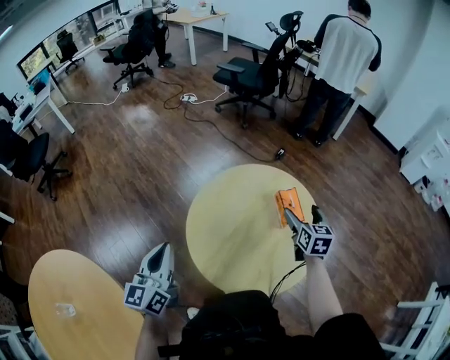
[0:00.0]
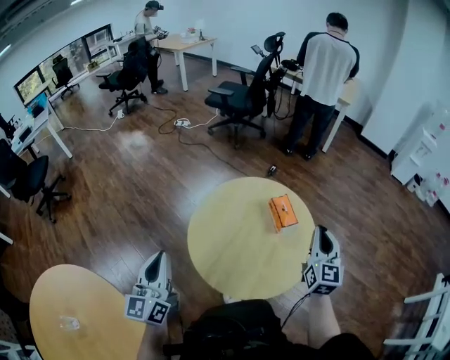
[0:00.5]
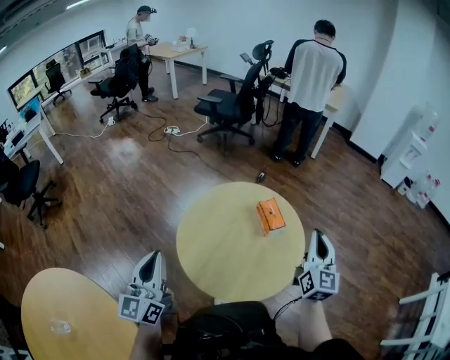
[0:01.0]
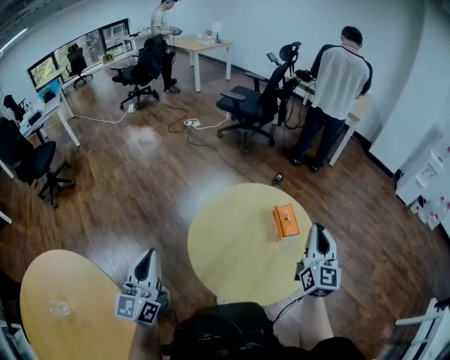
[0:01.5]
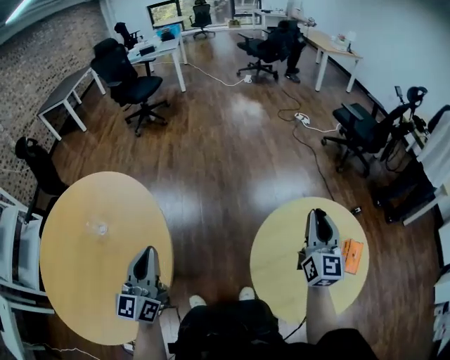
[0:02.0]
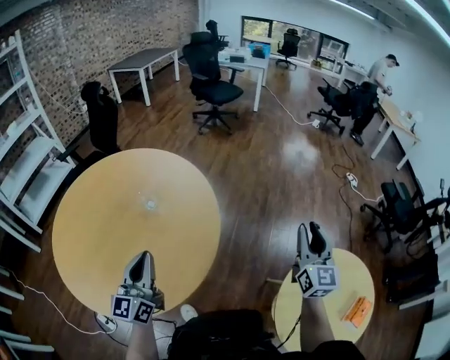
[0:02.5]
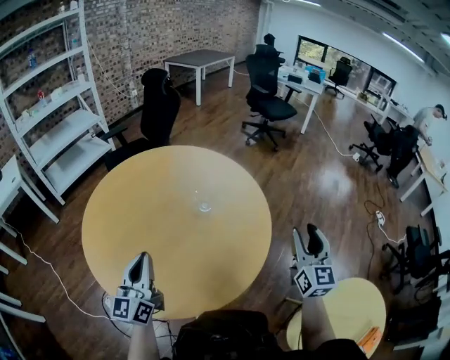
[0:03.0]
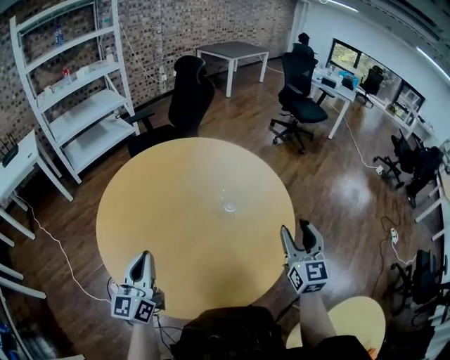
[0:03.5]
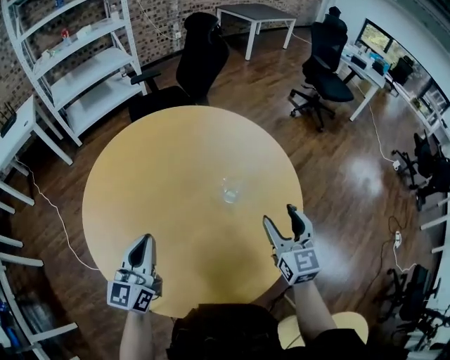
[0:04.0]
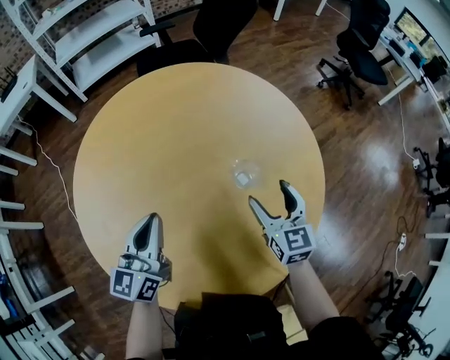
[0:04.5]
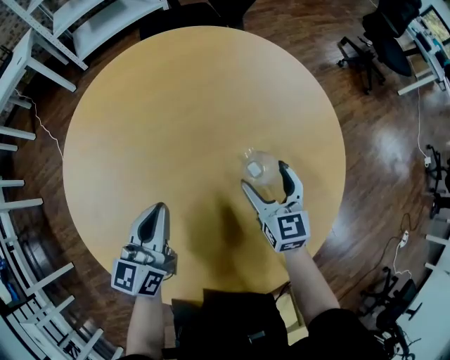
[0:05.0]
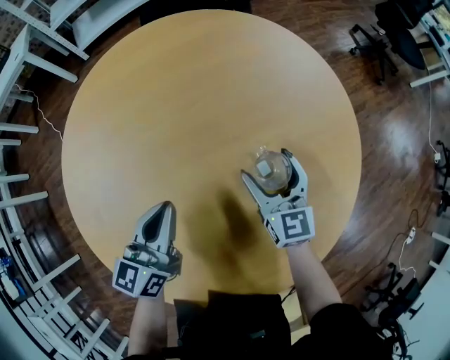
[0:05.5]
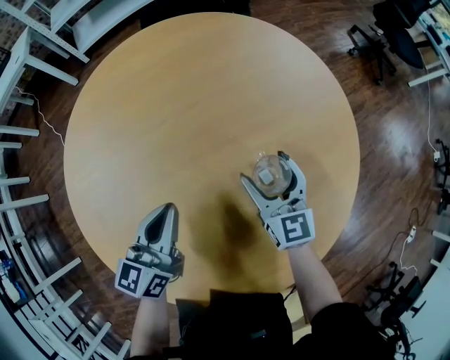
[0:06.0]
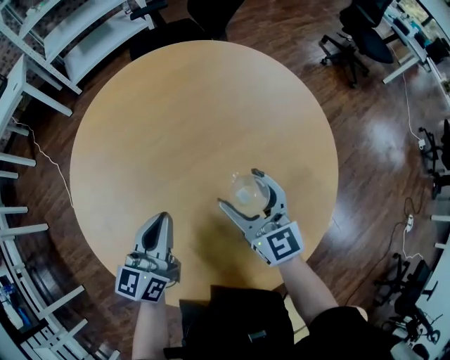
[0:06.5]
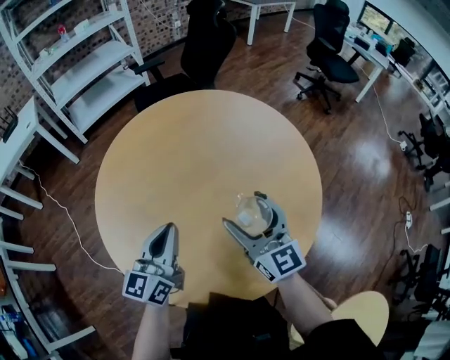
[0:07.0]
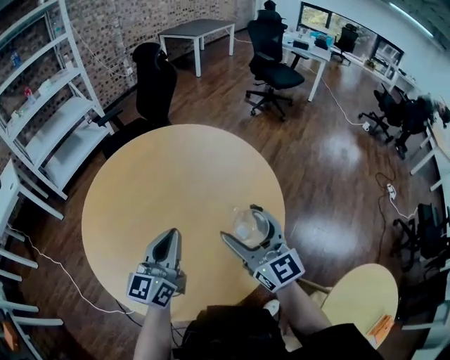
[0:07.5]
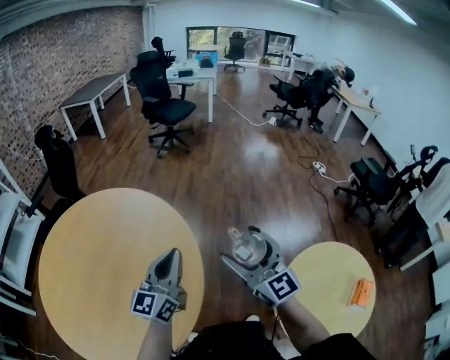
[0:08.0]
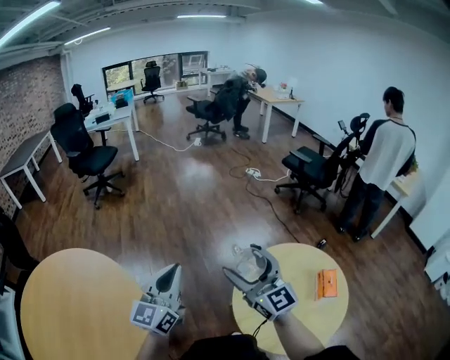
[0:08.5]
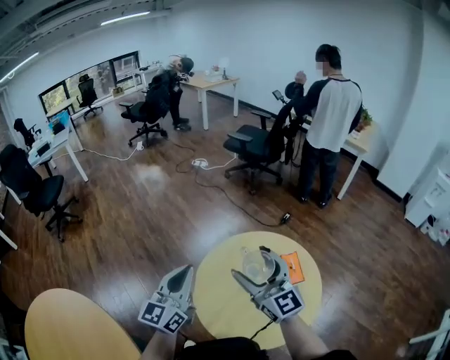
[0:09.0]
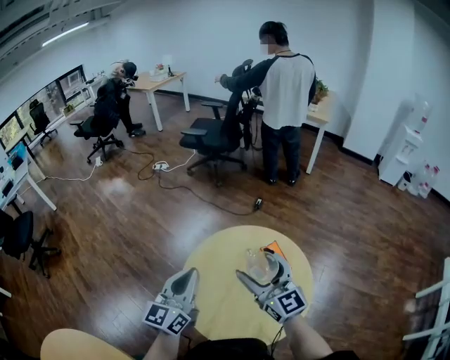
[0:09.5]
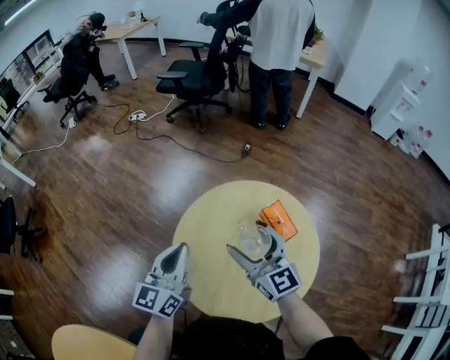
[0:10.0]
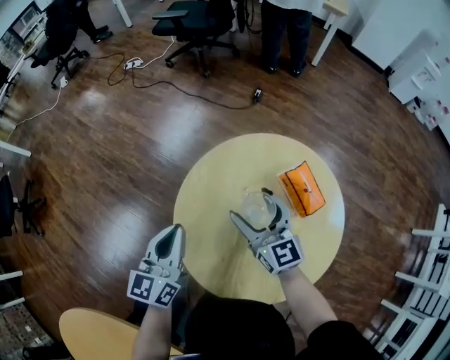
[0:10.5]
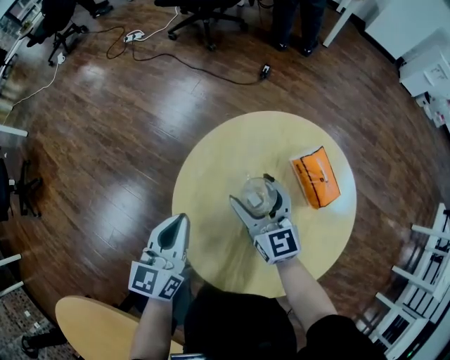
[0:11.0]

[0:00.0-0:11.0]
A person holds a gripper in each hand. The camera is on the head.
0:00.0 to 0:02.0: The left gripper changes place by some 30 cm, and rotates some 40 degrees. The right gripper shifts by some 35 cm, angles its fingers upward, by about 30 degrees, and closes its fingers.
0:02.0 to 0:03.5: The right gripper shifts by roughly 60 cm, and changes its angle by about 60 degrees; the left gripper changes place by approximately 50 cm, and swivels approximately 50 degrees.
0:03.5 to 0:05.5: The right gripper shifts approximately 35 cm forward, downward and to the left, swivels approximately 30 degrees, and opens up. Meanwhile the left gripper moves downward, forward and to the right, about 25 cm, and rotates about 20 degrees.
0:05.5 to 0:07.5: The right gripper travels upward and backward by approximately 35 cm, and turns by some 30 degrees, while the left gripper is displaced upward and backward by roughly 20 cm, and turns by some 30 degrees.
0:07.5 to 0:09.0: The two grippers travel together, roughly 70 cm. The left gripper changes its angle by about 80 degrees. The right gripper rotates roughly 80 degrees.
0:09.0 to 0:11.0: The right gripper travels downward by approximately 25 cm, and swivels some 30 degrees; the left gripper goes some 25 cm downward and forward, and swivels approximately 30 degrees.

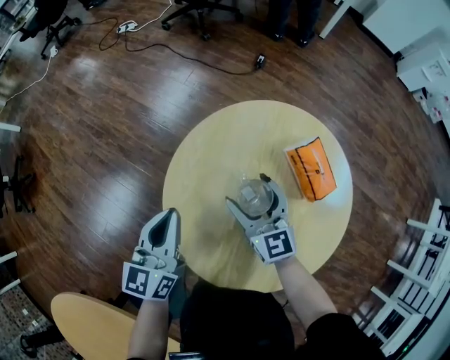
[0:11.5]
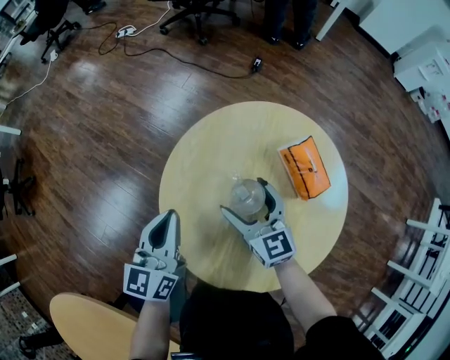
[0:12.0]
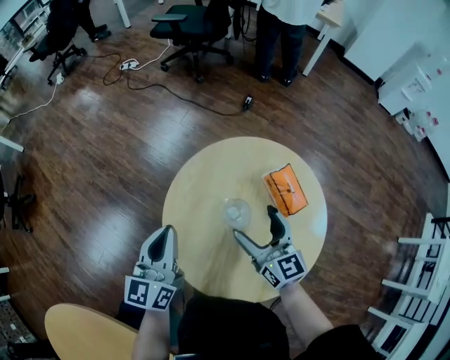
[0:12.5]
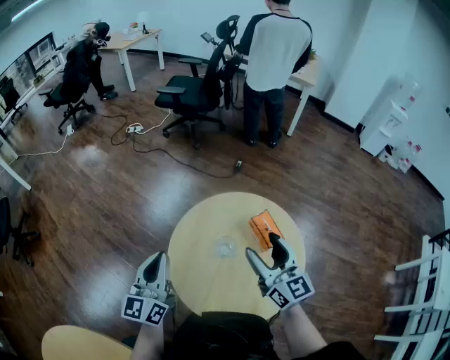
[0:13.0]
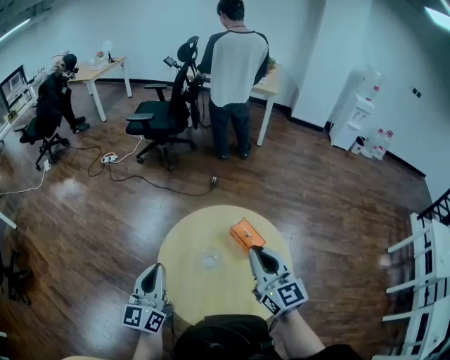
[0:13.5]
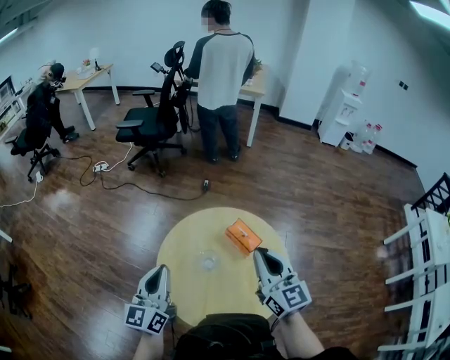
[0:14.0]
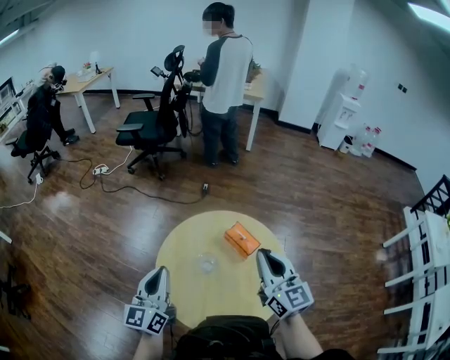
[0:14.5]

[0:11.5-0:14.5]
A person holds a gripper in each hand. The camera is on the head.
0:11.5 to 0:13.0: The two grippers go about 20 cm upward.
0:13.0 to 0:14.5: The right gripper shifts some 5 cm to the right, and closes up.

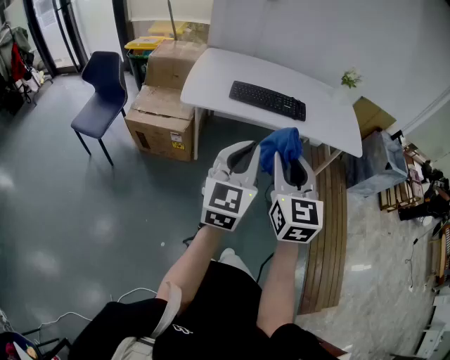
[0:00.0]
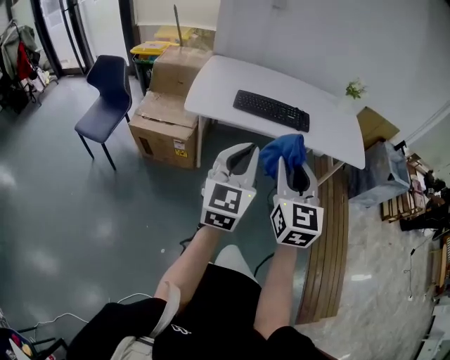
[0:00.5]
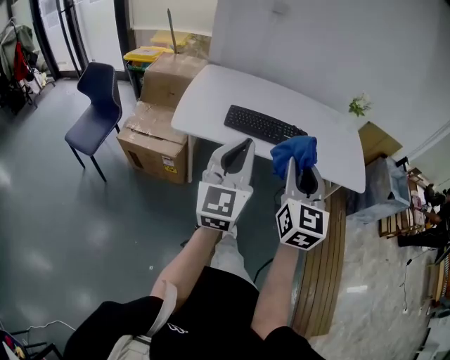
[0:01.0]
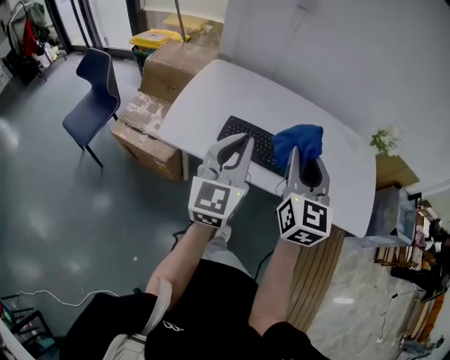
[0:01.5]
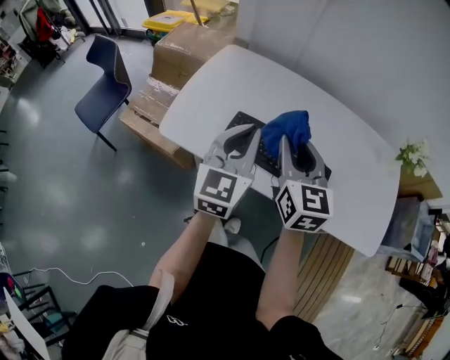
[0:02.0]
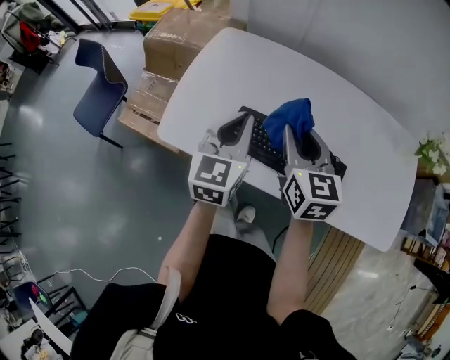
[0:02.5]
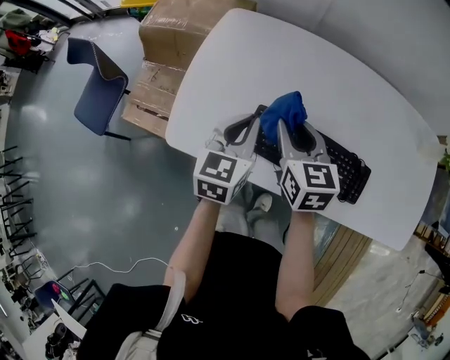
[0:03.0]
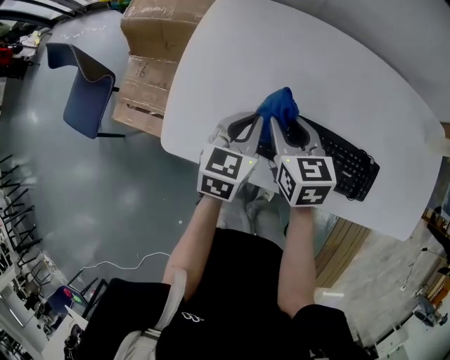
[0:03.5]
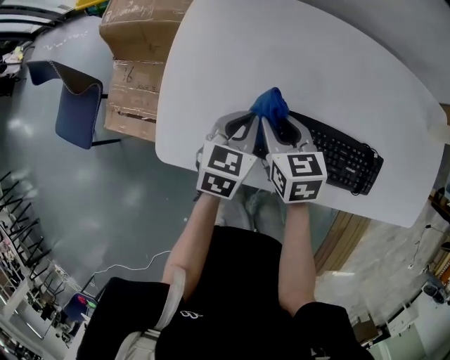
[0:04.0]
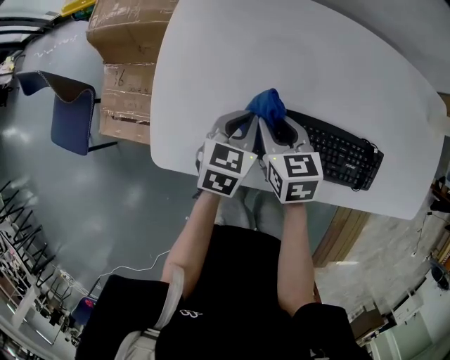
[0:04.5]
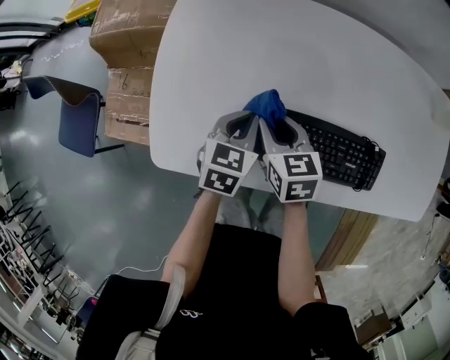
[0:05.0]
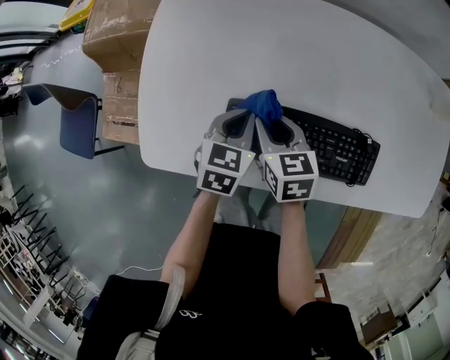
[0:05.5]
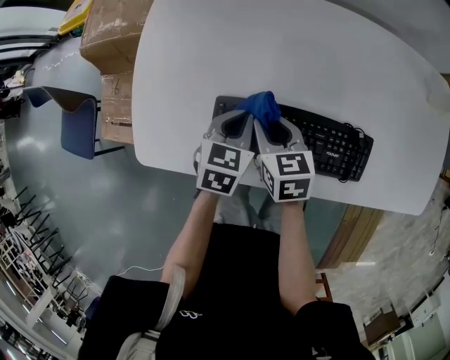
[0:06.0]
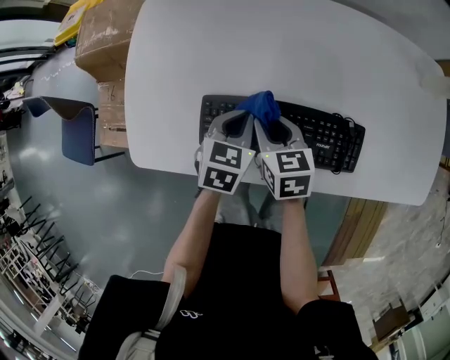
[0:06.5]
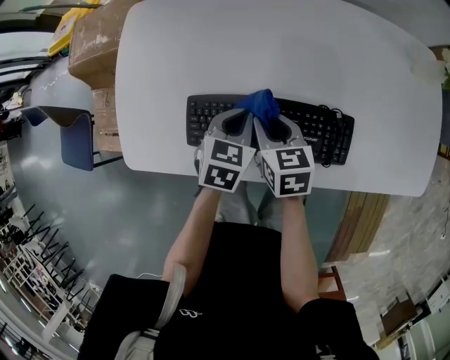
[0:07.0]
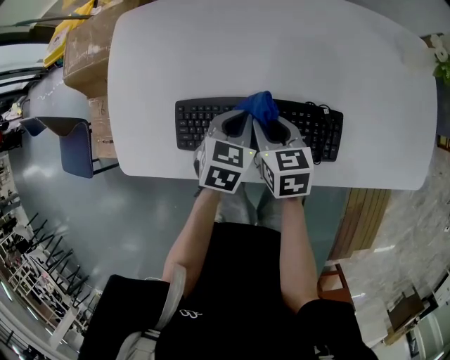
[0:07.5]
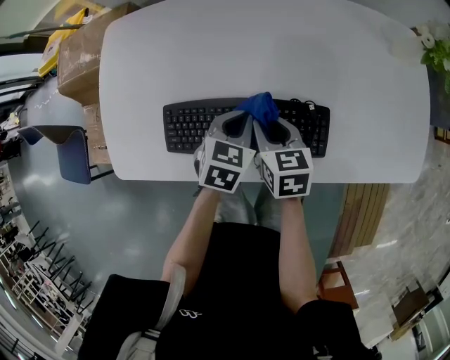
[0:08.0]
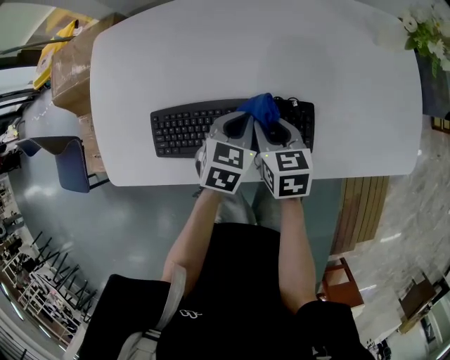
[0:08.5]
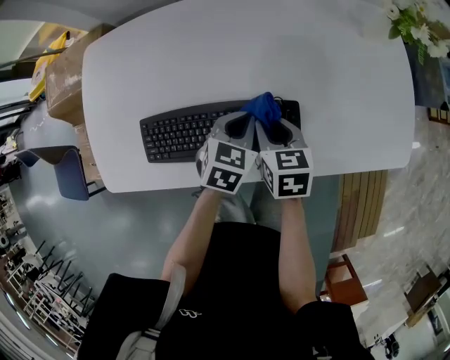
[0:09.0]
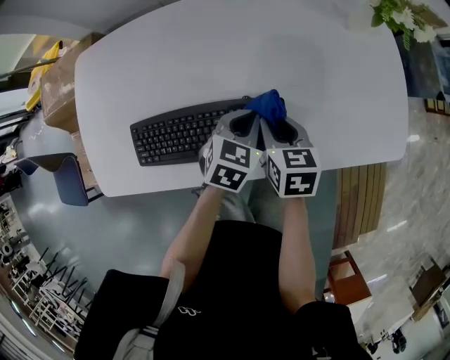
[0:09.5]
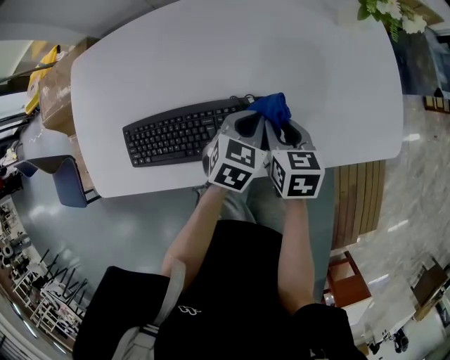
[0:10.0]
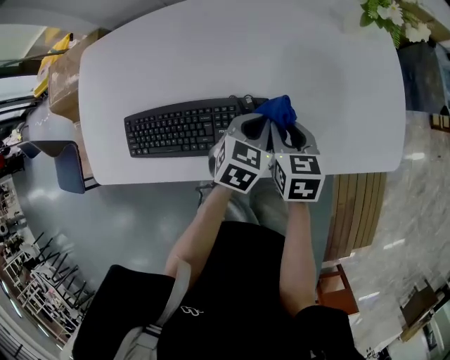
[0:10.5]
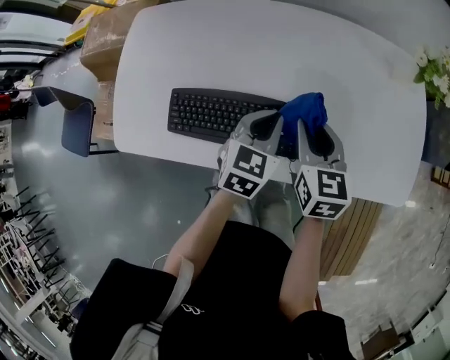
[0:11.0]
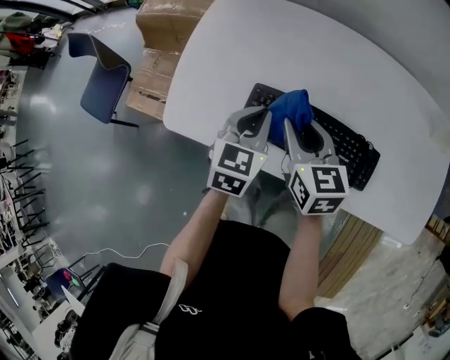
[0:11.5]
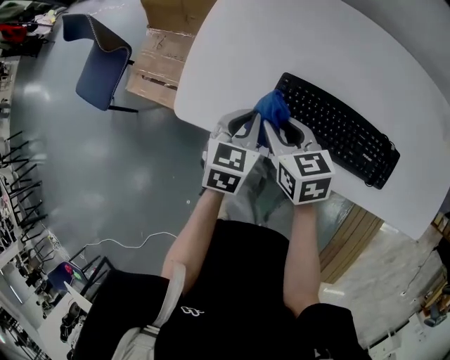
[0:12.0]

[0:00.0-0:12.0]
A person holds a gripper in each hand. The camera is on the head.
0:00.0 to 0:02.0: Both grippers are carried forward, about 50 cm. The right gripper turns by some 20 degrees.
0:02.0 to 0:04.0: The left gripper shifts about 30 cm downward and forward, and angles its fingers downward, by about 30 degrees, while the right gripper shifts about 30 cm downward, forward and to the left, and changes its angle by roughly 30 degrees.
0:04.0 to 0:06.0: Both grippers move to the right, approximately 10 cm.
0:06.0 to 0:08.0: Both grippers move to the right, some 15 cm.
0:08.0 to 0:10.0: The two grippers go about 20 cm to the right.
0:10.0 to 0:12.0: Both grippers are carried some 40 cm. The right gripper rotates approximately 40 degrees. Meanwhile the left gripper changes its angle by roughly 40 degrees.
